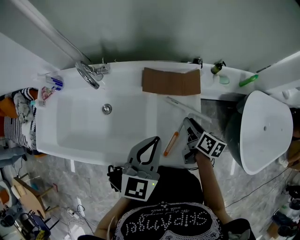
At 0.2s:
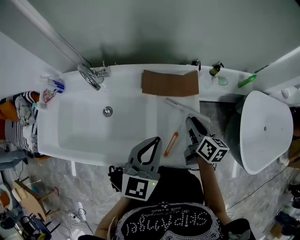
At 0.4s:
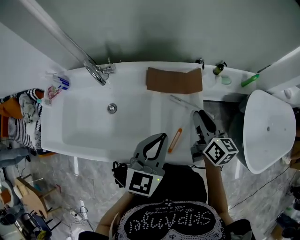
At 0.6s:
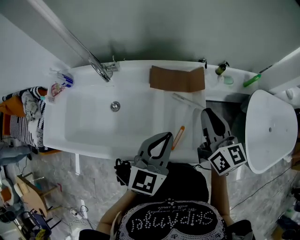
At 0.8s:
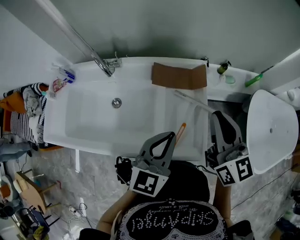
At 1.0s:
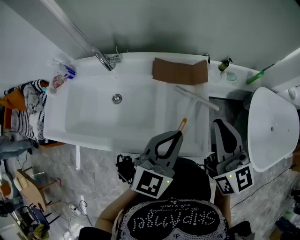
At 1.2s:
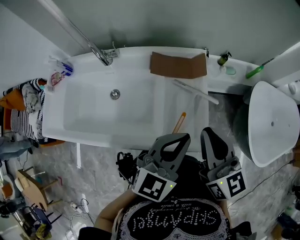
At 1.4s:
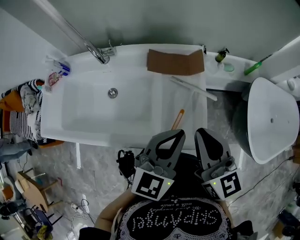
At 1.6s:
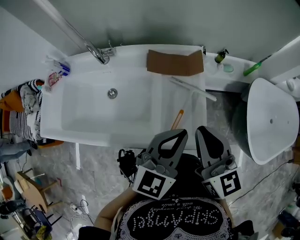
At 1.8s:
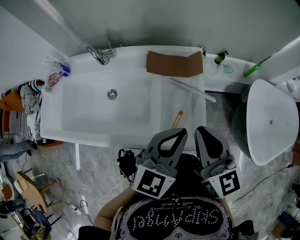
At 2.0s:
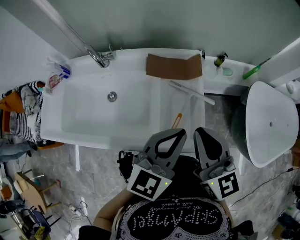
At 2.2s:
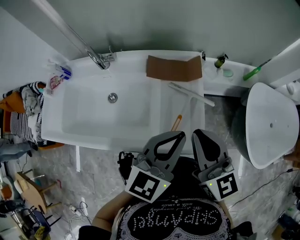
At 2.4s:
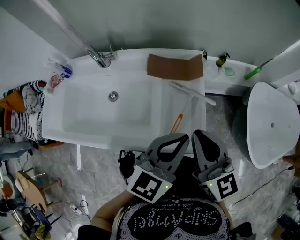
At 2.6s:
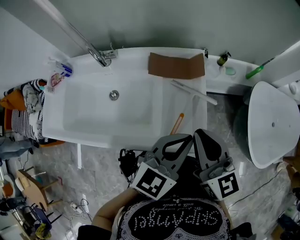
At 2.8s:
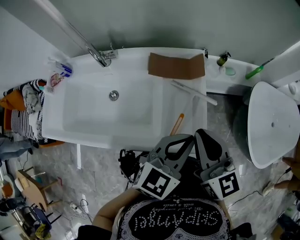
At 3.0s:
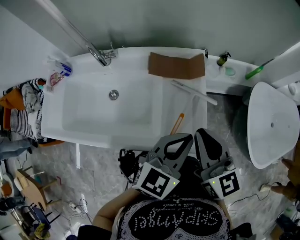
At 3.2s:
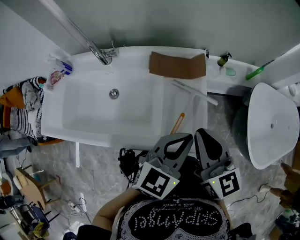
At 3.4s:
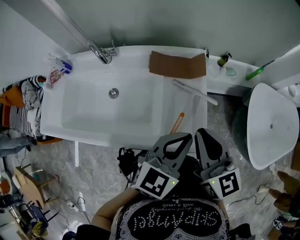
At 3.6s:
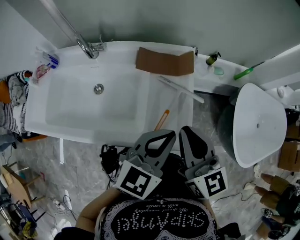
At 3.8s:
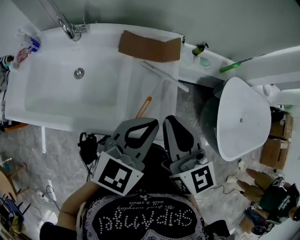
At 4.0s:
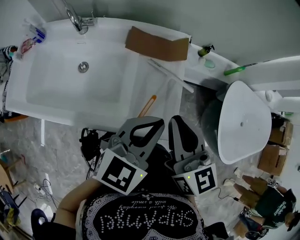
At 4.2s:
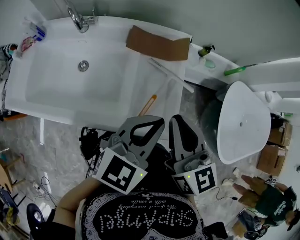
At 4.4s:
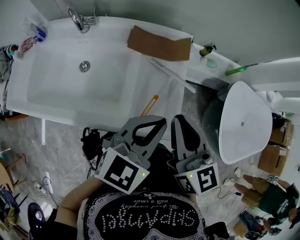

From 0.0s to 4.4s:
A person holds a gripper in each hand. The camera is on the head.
From 0.0s to 1.4s: The right gripper is displaced upward and backward by approximately 25 cm, rotates around the line of its fingers by approximately 40 degrees, counterclockwise from behind, and closes. The left gripper heads backward and to the right, covering roughly 10 cm.
From 1.4s to 4.4s: The grippers stay close to where they were, moving slightly.

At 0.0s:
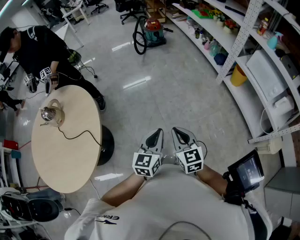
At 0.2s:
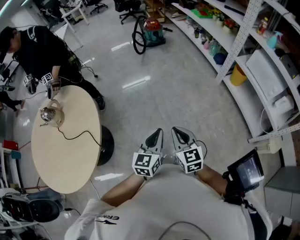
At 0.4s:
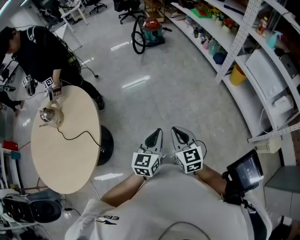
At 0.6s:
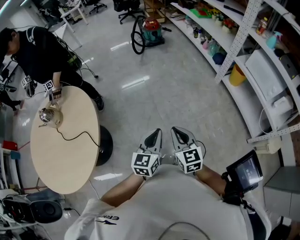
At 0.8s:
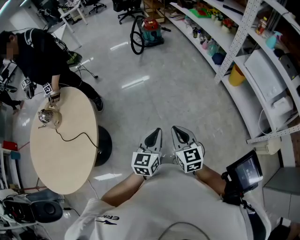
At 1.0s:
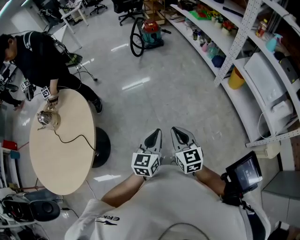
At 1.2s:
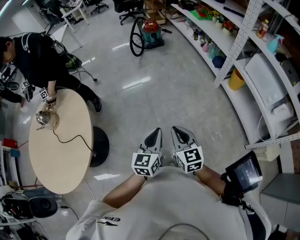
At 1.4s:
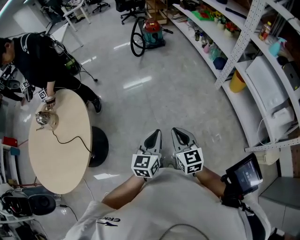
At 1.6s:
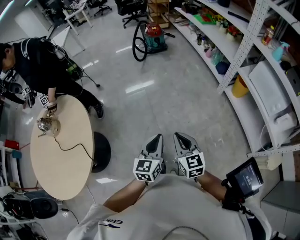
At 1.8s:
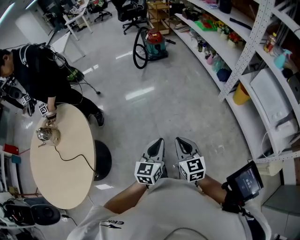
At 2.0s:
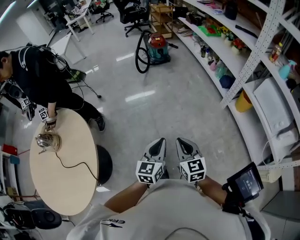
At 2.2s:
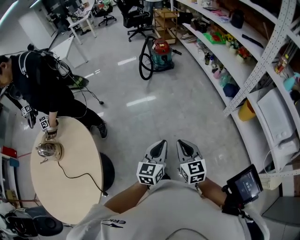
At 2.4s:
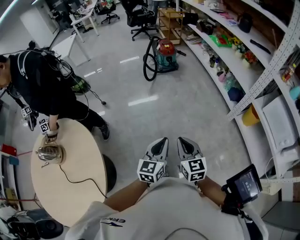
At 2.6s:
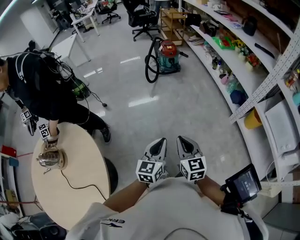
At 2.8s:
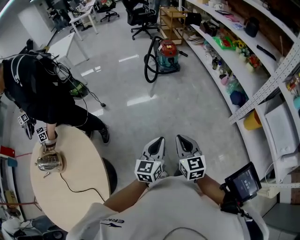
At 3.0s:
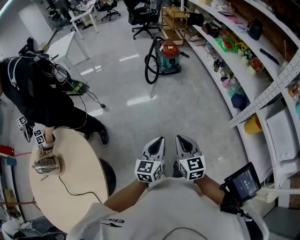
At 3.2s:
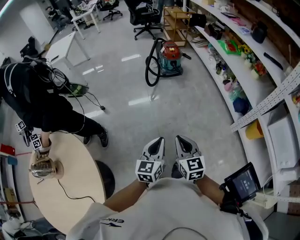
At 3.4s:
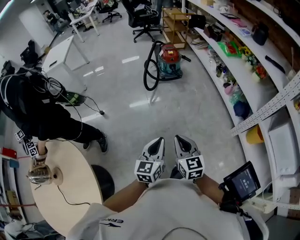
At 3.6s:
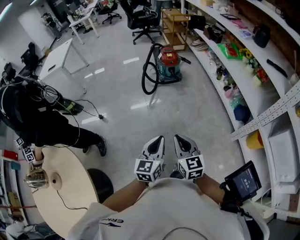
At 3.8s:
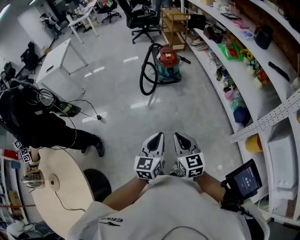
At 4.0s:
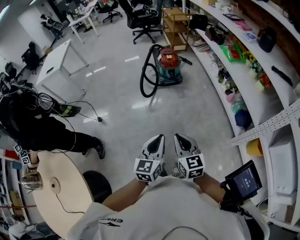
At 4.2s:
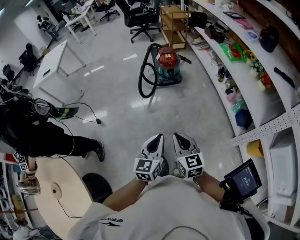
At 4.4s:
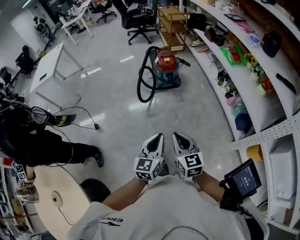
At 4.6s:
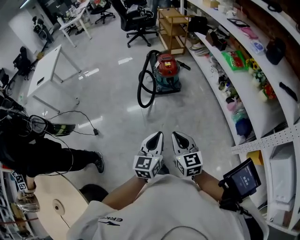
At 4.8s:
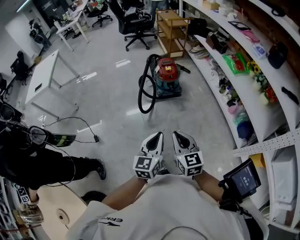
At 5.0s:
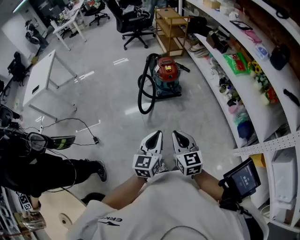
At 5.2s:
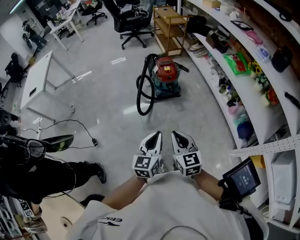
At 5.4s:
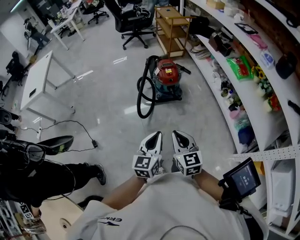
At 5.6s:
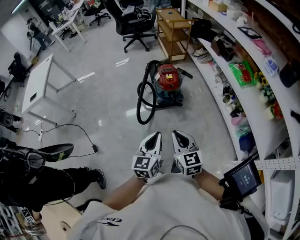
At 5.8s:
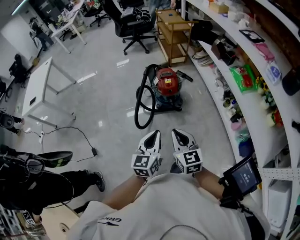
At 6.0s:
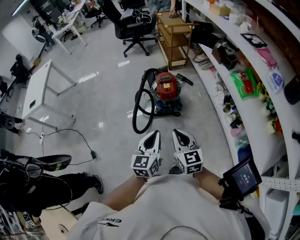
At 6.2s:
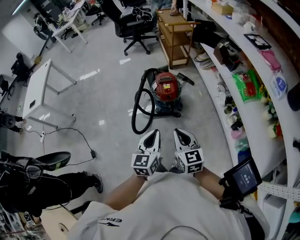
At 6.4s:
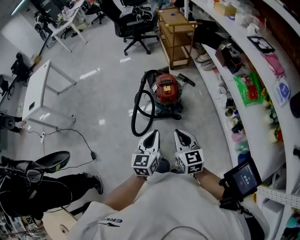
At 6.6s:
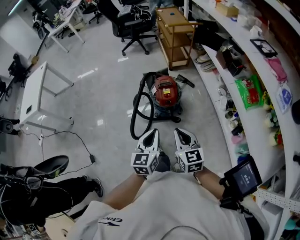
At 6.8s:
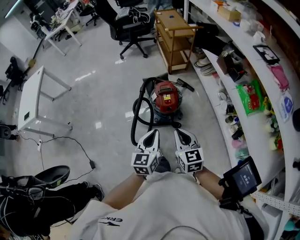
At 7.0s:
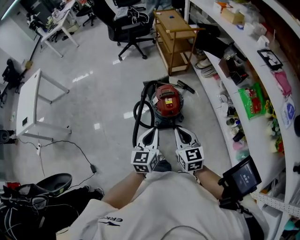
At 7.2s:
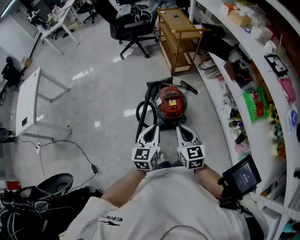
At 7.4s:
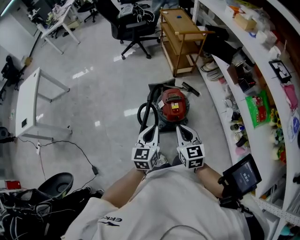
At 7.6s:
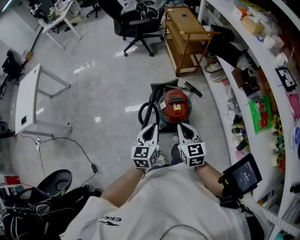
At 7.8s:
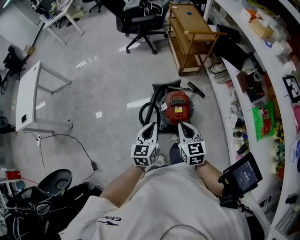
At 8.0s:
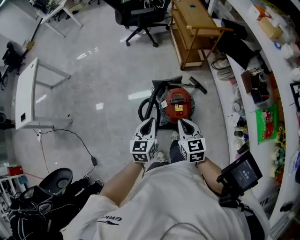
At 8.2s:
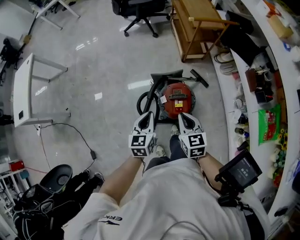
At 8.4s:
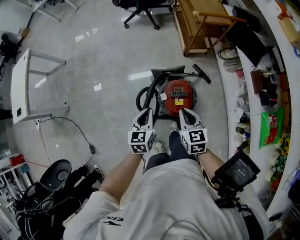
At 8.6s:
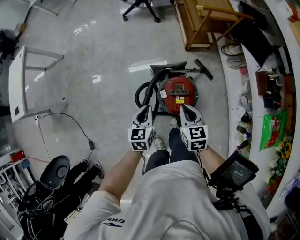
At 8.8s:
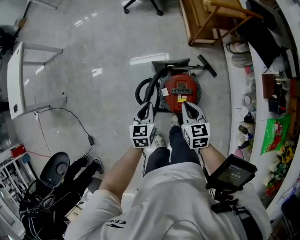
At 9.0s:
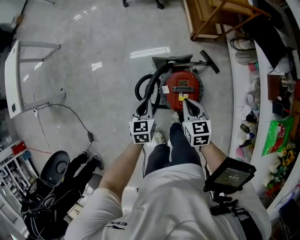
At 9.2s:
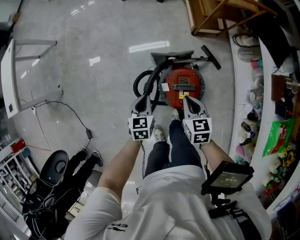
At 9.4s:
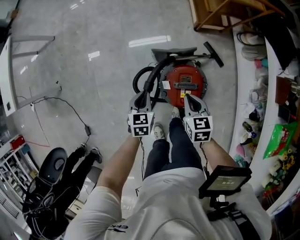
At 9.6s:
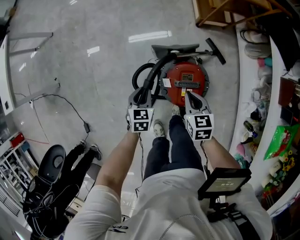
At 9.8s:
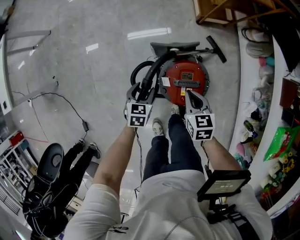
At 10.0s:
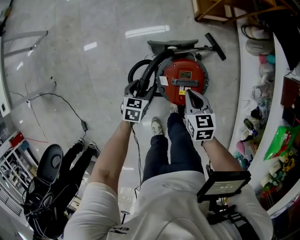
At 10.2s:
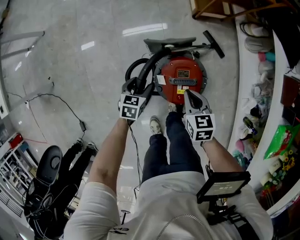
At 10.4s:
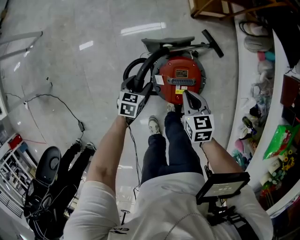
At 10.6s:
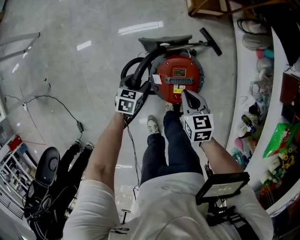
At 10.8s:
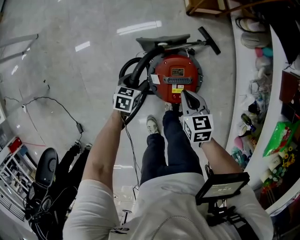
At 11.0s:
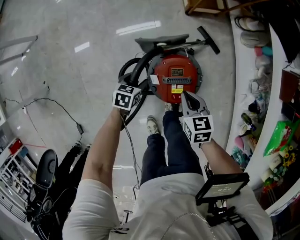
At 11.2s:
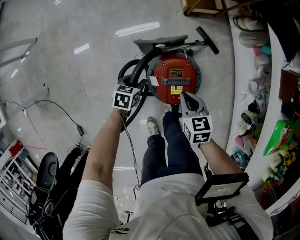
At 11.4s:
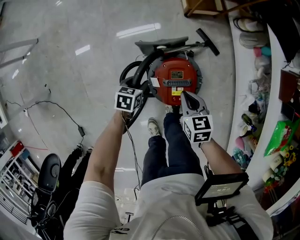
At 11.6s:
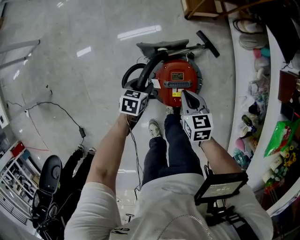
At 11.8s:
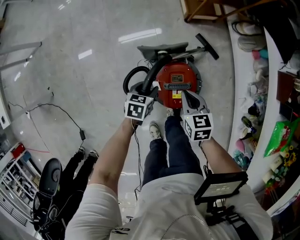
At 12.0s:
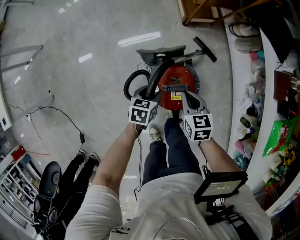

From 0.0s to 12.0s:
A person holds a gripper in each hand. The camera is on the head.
From 0.0s to 1.6s: Both grippers travel together forward and to the right, approximately 10 cm.
From 1.6s to 3.0s: Both grippers travel together forward and to the left, some 40 cm.
From 3.0s to 4.4s: The grippers both shift forward by about 35 cm.
From 4.4s to 6.0s: The pair of grippers is taken forward, some 40 cm.
From 6.0s to 7.6s: Both grippers move forward, some 35 cm.
From 7.6s to 9.0s: The right gripper shifts approximately 30 cm forward and downward, while the left gripper shifts about 30 cm downward and forward, and swivels roughly 30 degrees.
From 9.0s to 10.4s: The left gripper shifts about 20 cm downward, swivels some 20 degrees, and opens; the right gripper travels downward by some 10 cm.
From 10.4s to 12.0s: The left gripper moves to the right and upward, some 10 cm.

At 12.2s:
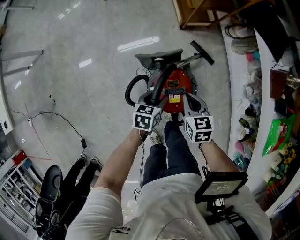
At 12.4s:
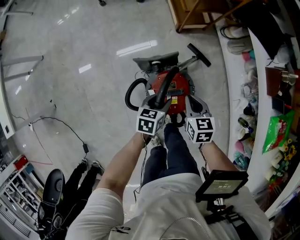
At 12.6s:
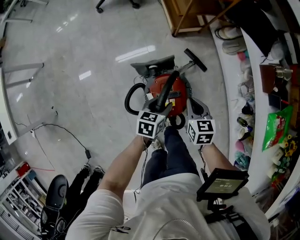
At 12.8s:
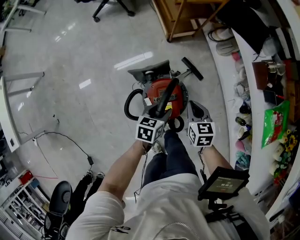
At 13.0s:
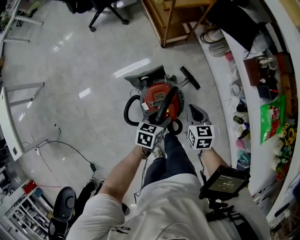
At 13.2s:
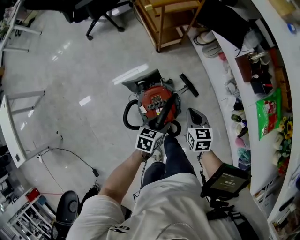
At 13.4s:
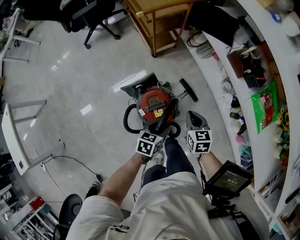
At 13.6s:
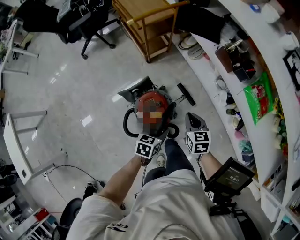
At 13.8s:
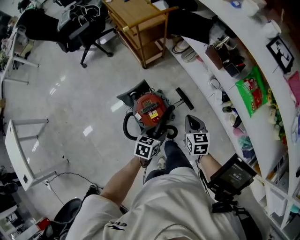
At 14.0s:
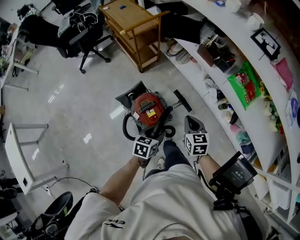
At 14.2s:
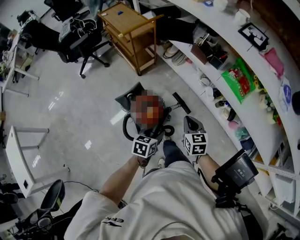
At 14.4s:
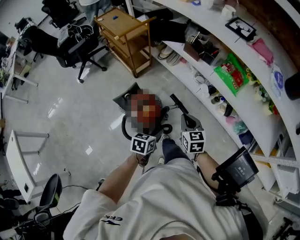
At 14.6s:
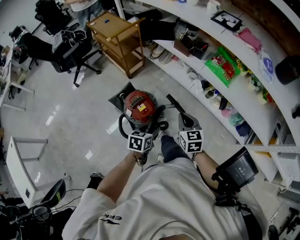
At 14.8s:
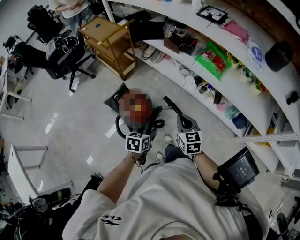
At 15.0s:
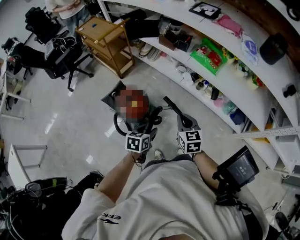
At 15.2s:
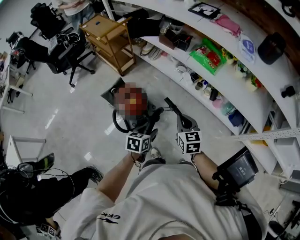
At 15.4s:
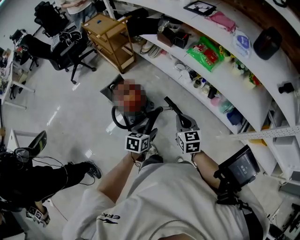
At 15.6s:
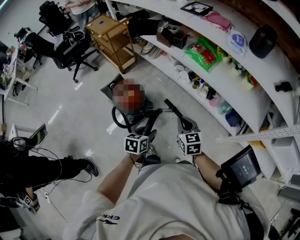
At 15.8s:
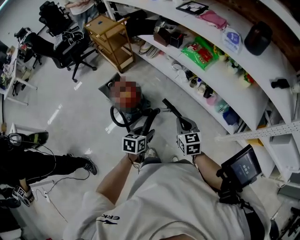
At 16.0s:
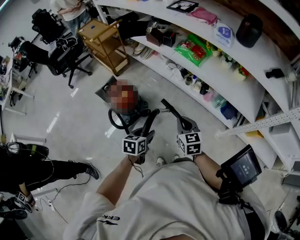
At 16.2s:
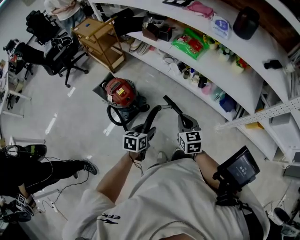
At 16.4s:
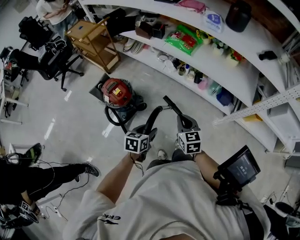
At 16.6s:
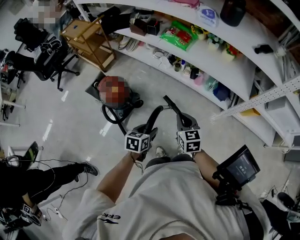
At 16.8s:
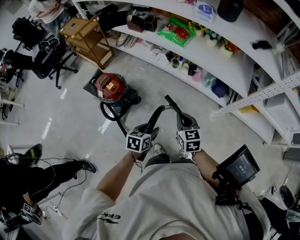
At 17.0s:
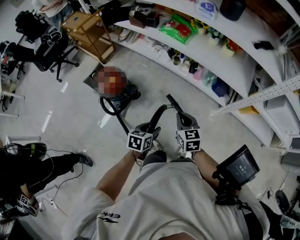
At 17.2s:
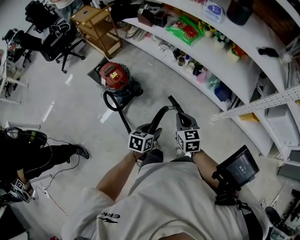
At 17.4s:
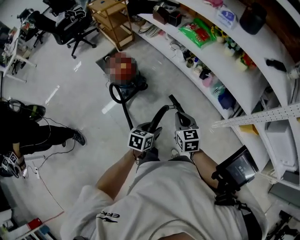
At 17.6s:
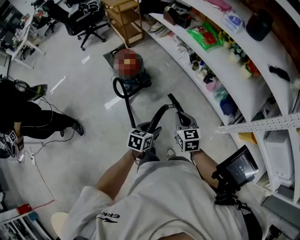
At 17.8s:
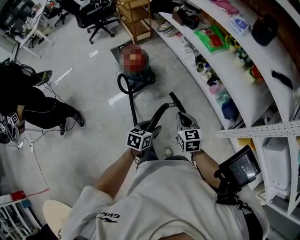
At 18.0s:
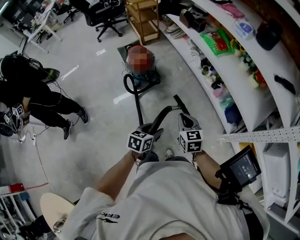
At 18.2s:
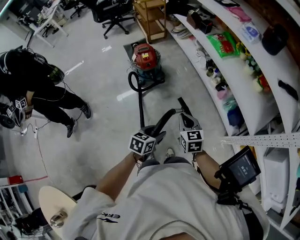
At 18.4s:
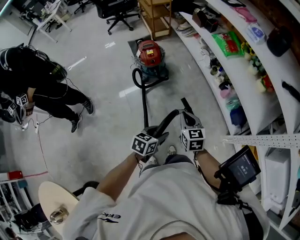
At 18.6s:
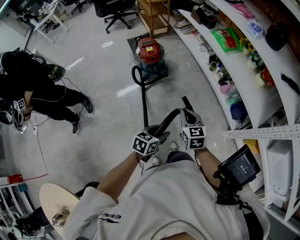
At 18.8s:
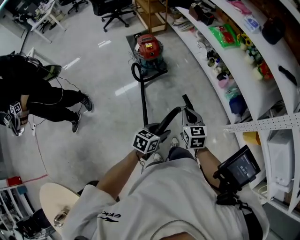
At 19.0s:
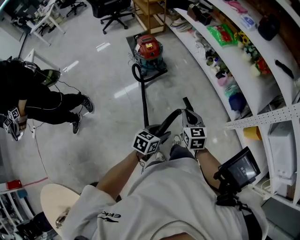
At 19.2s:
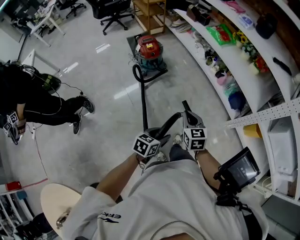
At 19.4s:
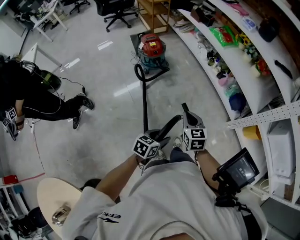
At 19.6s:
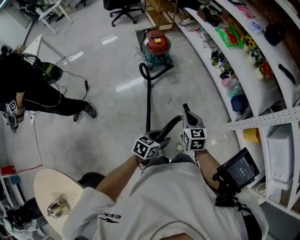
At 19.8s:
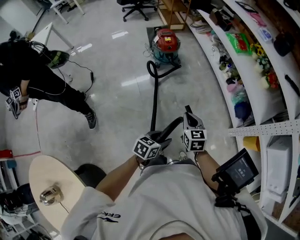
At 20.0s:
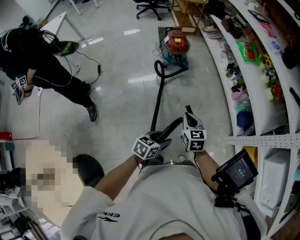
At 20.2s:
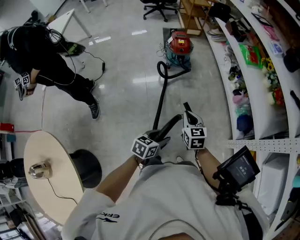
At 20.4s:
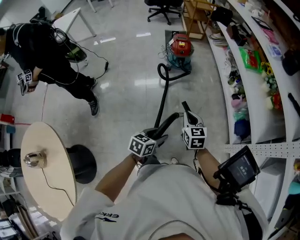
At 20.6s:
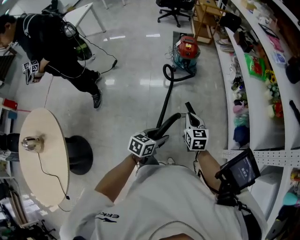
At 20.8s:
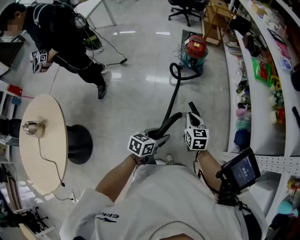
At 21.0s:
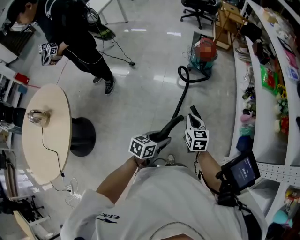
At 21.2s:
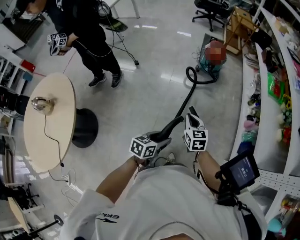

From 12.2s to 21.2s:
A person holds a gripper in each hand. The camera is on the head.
From 12.2s to 13.8s: The right gripper moves about 25 cm, and rotates some 30 degrees. Meanwhile the left gripper ends up roughly 25 cm from where it was, and changes its angle by approximately 30 degrees.
From 13.8s to 15.2s: The left gripper moves backward and to the right, some 25 cm. The right gripper heads backward, to the right and upward, covering roughly 30 cm.
From 15.2s to 16.6s: Both grippers move to the right and backward, roughly 20 cm.
From 16.6s to 18.2s: The right gripper ends up approximately 15 cm from where it was, and turns by approximately 30 degrees, while the left gripper shifts by roughly 25 cm, and turns by about 20 degrees.
From 18.2s to 19.8s: The two grippers go about 25 cm backward.
From 19.8s to 21.2s: The right gripper ends up some 10 cm from where it was, and changes its angle by about 30 degrees. The left gripper changes place by approximately 15 cm, and changes its angle by about 40 degrees.
